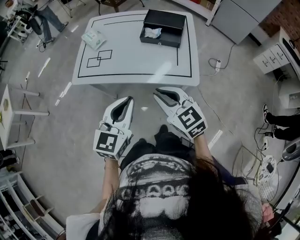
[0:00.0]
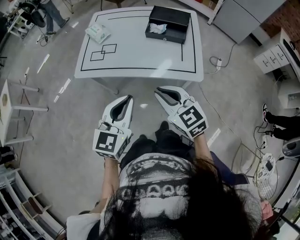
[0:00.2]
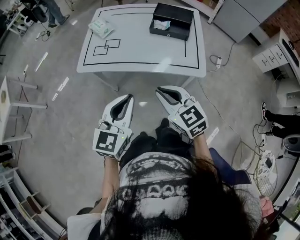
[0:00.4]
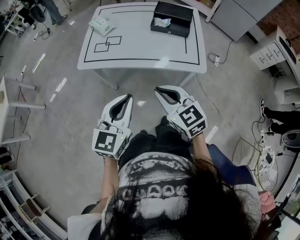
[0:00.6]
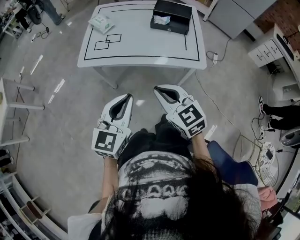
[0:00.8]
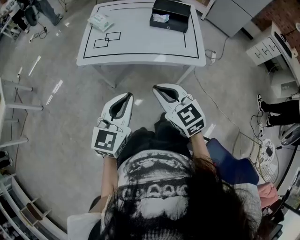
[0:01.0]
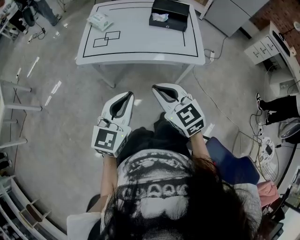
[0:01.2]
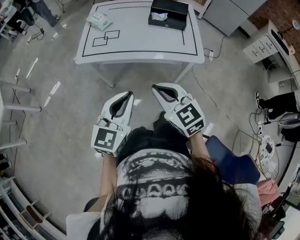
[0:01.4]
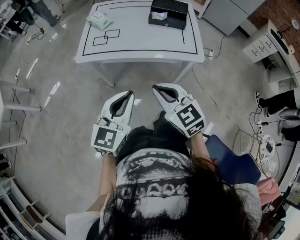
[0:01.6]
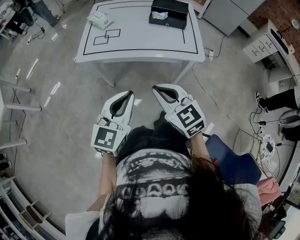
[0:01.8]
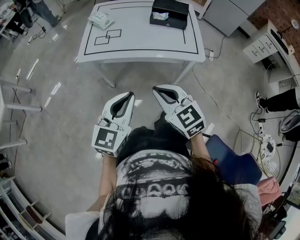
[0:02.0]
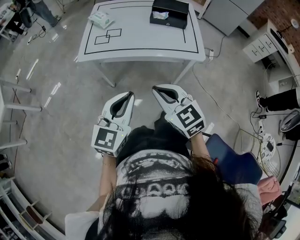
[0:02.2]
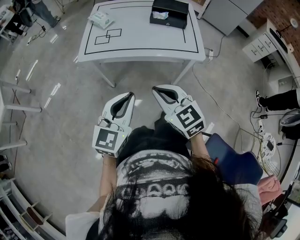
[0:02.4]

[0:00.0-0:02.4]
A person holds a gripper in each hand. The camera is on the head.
0:00.0 to 0:01.2: Both grippers move to the left and backward, some 15 cm.
0:01.2 to 0:02.4: There are only small adjustments of the grippers.

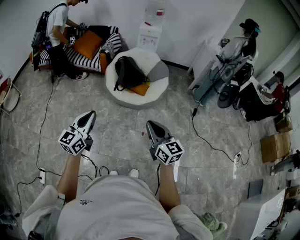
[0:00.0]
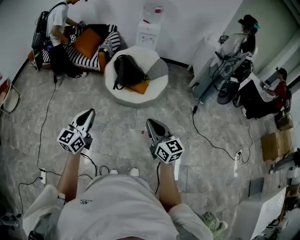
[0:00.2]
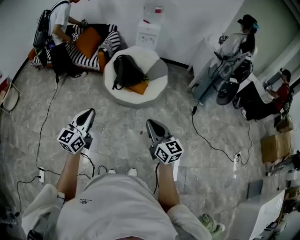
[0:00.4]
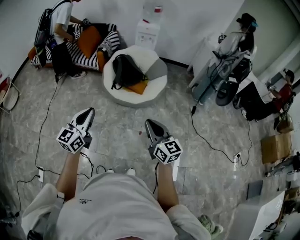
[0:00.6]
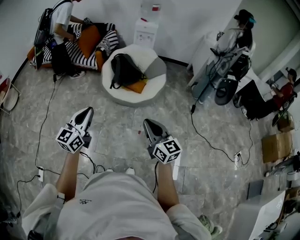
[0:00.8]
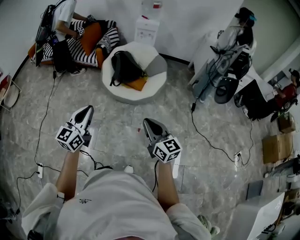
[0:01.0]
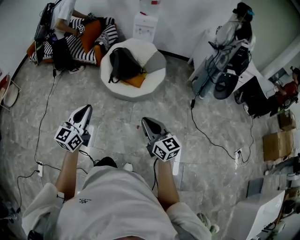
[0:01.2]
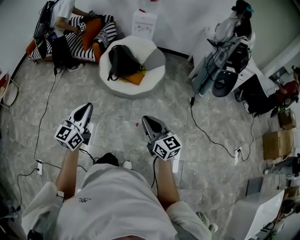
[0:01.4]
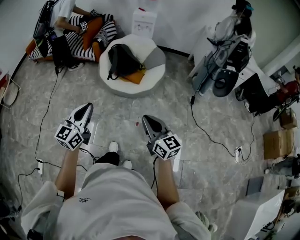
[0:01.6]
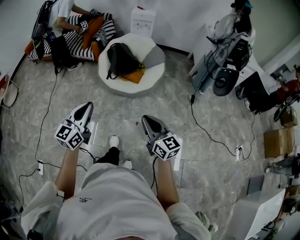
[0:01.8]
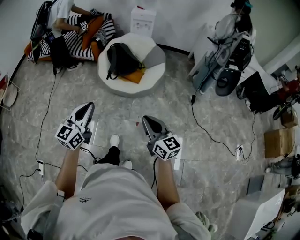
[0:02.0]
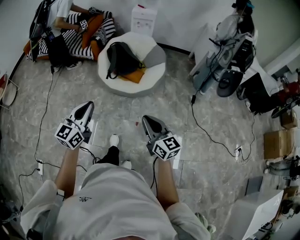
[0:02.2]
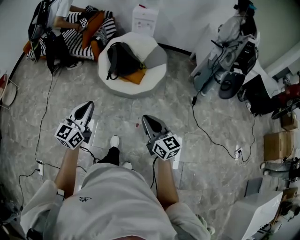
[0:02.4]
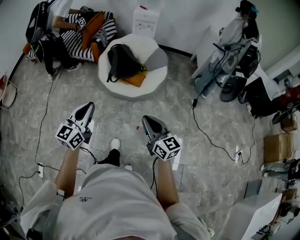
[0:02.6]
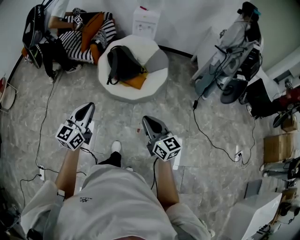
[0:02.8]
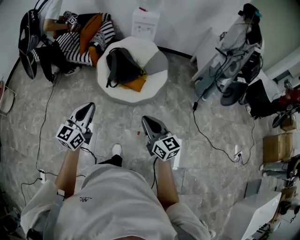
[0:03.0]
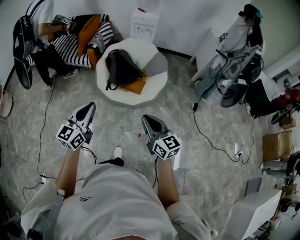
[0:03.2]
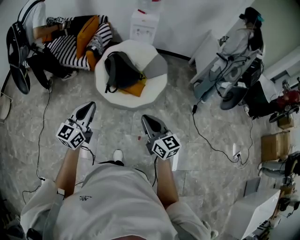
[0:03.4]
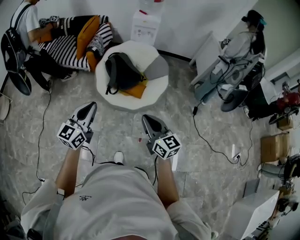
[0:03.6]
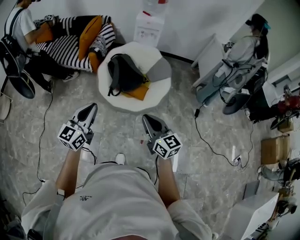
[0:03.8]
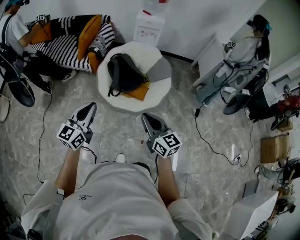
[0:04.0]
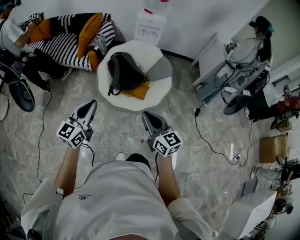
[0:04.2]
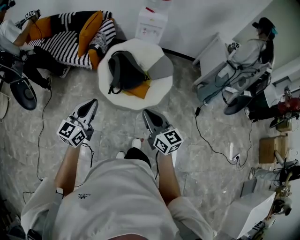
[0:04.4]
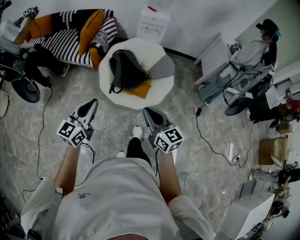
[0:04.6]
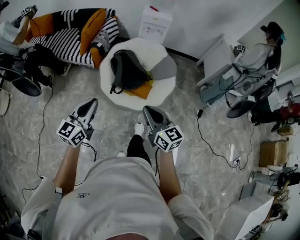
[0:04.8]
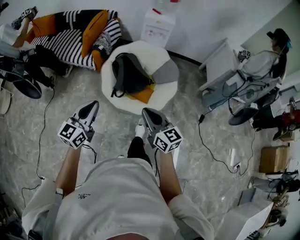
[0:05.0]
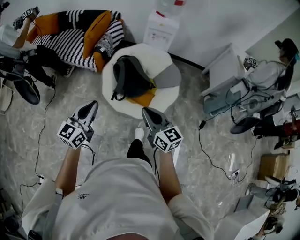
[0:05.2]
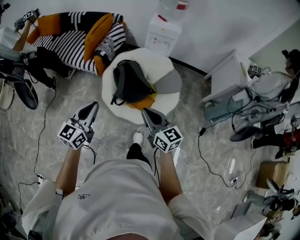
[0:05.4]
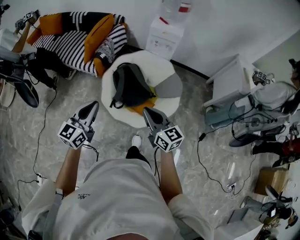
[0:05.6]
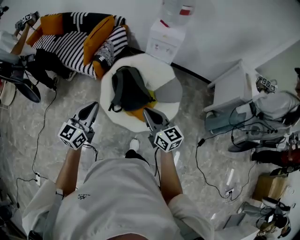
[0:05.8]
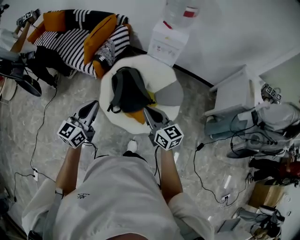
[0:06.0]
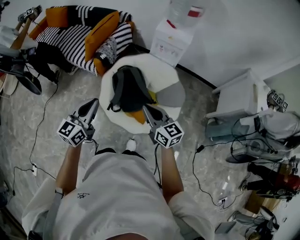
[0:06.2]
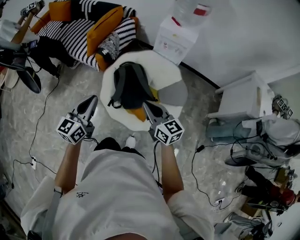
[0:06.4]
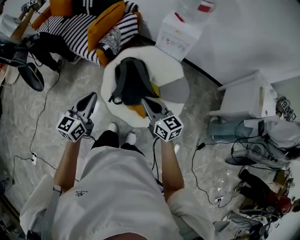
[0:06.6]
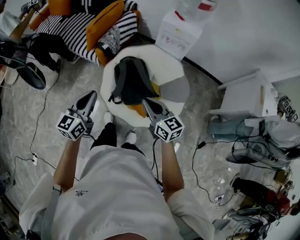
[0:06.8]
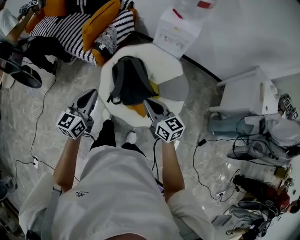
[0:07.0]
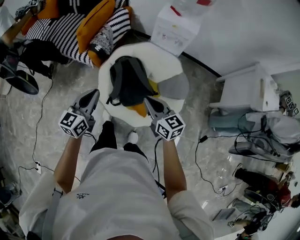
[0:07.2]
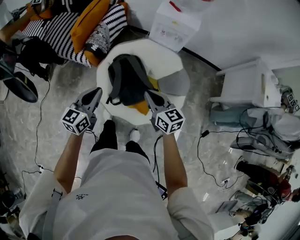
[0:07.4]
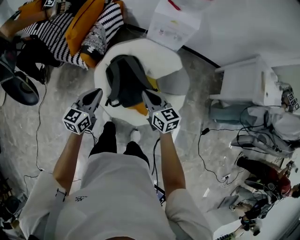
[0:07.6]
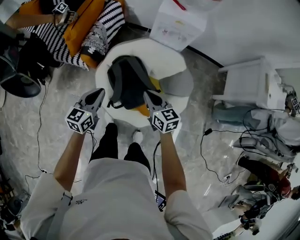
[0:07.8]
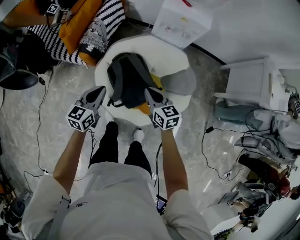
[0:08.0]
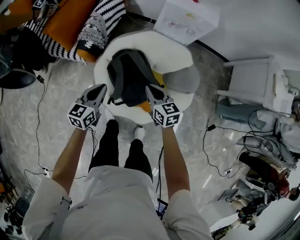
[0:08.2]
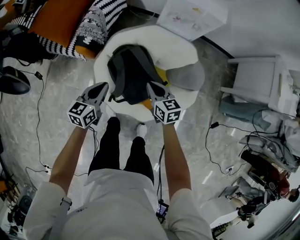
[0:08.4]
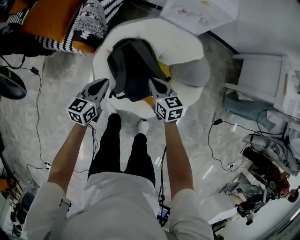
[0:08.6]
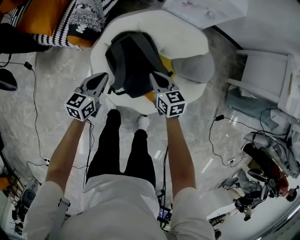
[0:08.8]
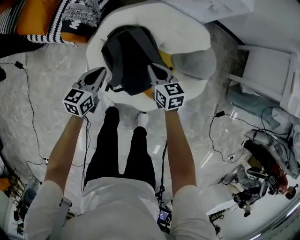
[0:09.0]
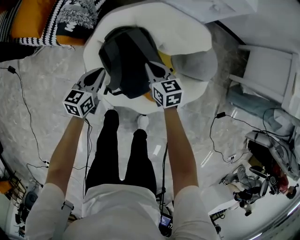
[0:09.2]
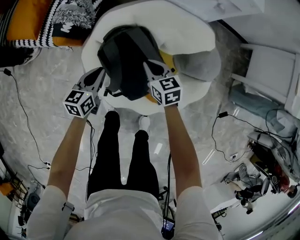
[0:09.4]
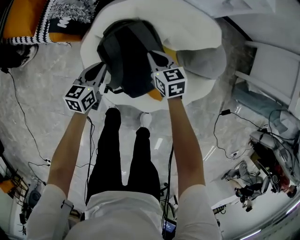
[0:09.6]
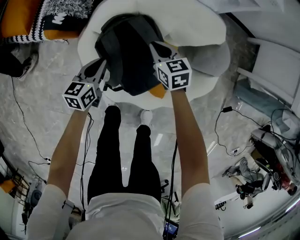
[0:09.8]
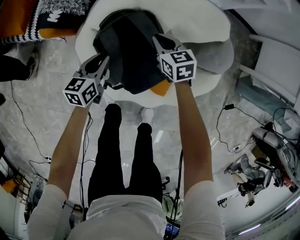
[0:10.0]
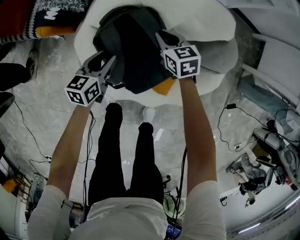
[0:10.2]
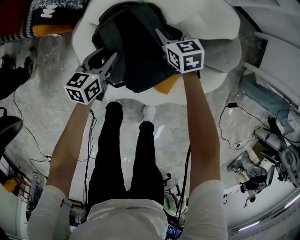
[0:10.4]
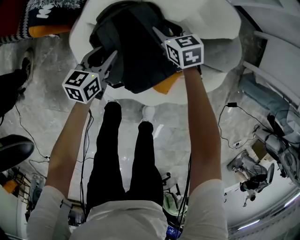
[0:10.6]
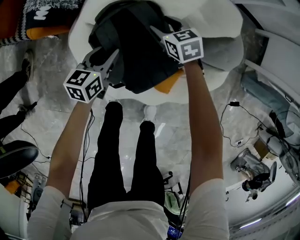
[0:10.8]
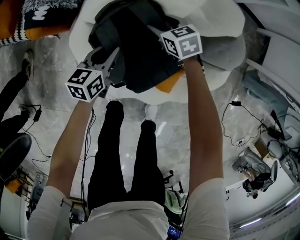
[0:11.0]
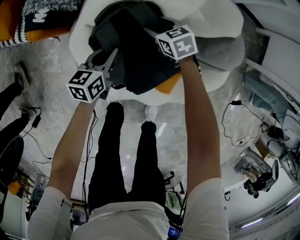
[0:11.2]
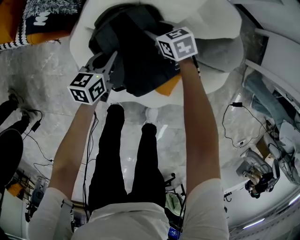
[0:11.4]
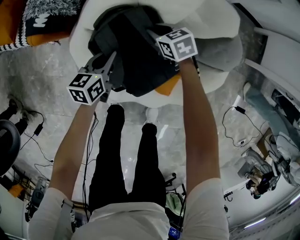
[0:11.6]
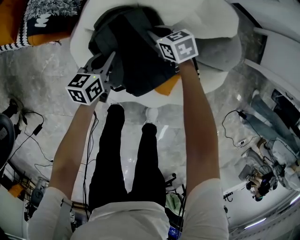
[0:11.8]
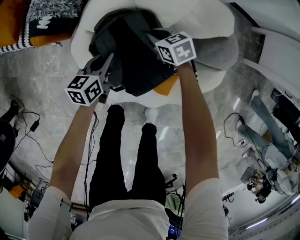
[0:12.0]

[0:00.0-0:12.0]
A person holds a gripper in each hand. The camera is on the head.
0:00.0 to 0:01.6: The two grippers go roughly 15 cm to the right.
0:01.6 to 0:03.0: The two grippers go about 20 cm forward.
0:03.0 to 0:04.4: Both grippers travel together forward and to the left, approximately 20 cm.
0:04.4 to 0:06.0: The left gripper moves forward and to the right, some 30 cm, while the right gripper moves forward, approximately 35 cm.
0:06.0 to 0:07.6: Both grippers move forward and downward, about 25 cm.
0:07.6 to 0:09.0: The grippers both shift downward and forward by approximately 30 cm.
0:09.0 to 0:10.4: The left gripper is displaced downward by about 20 cm, and opens, while the right gripper travels downward and forward by approximately 20 cm.
0:10.4 to 0:12.0: The right gripper opens, then closes again, while the left gripper closes.

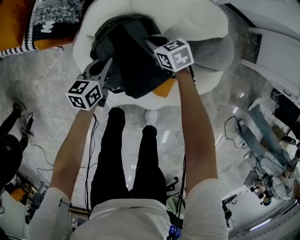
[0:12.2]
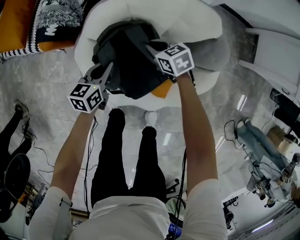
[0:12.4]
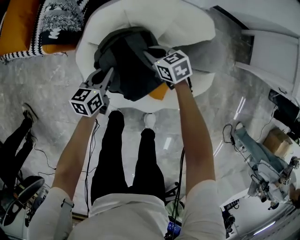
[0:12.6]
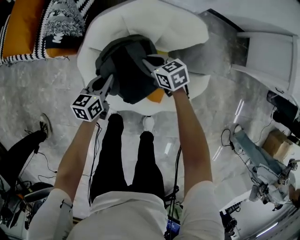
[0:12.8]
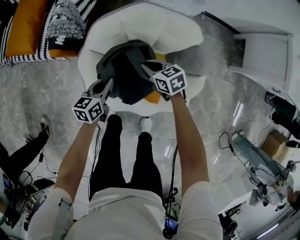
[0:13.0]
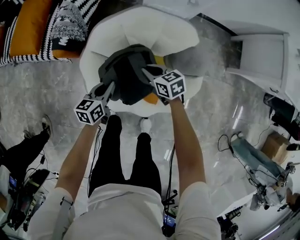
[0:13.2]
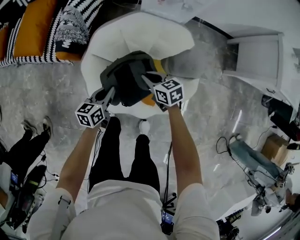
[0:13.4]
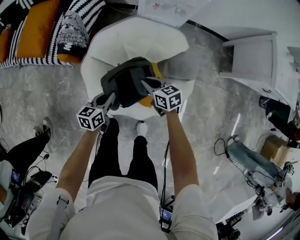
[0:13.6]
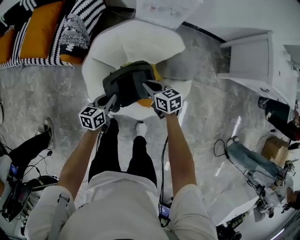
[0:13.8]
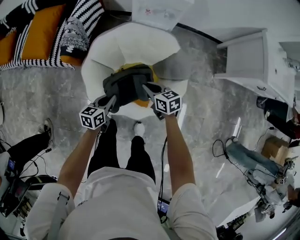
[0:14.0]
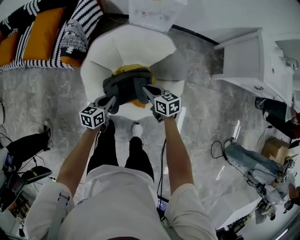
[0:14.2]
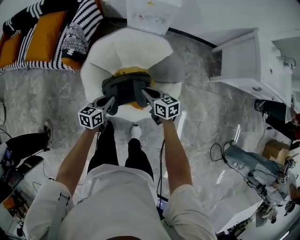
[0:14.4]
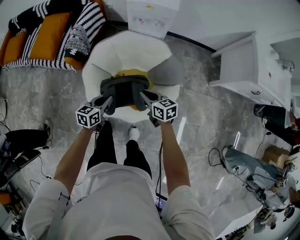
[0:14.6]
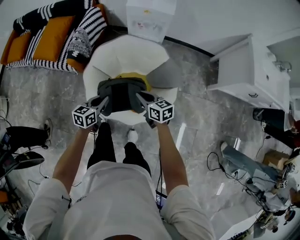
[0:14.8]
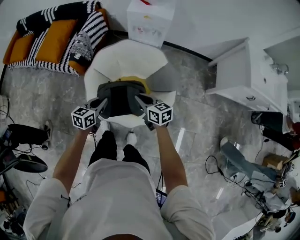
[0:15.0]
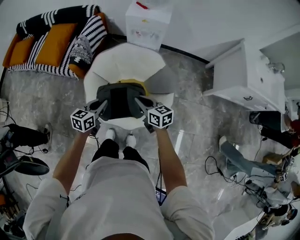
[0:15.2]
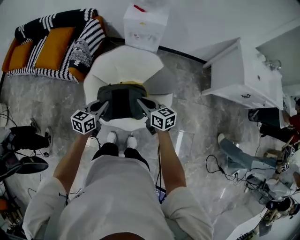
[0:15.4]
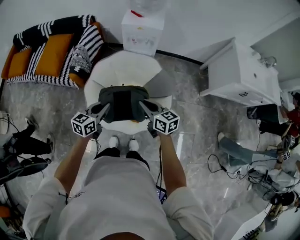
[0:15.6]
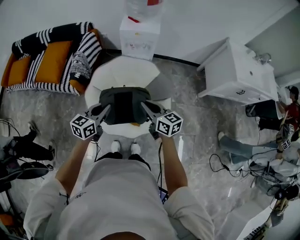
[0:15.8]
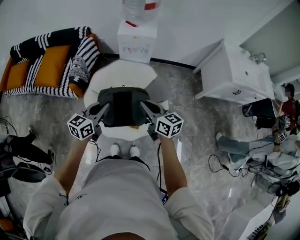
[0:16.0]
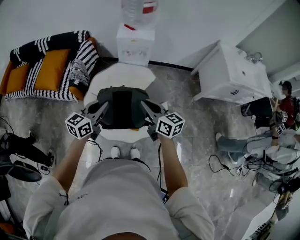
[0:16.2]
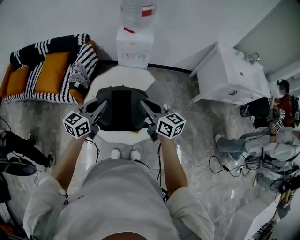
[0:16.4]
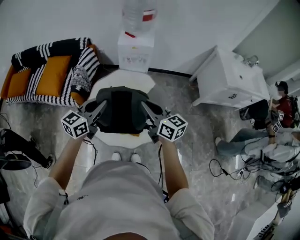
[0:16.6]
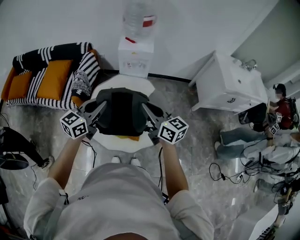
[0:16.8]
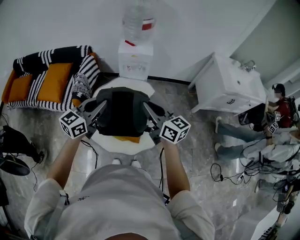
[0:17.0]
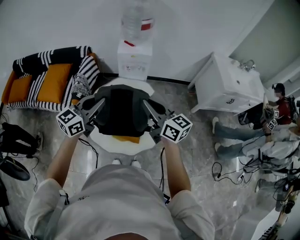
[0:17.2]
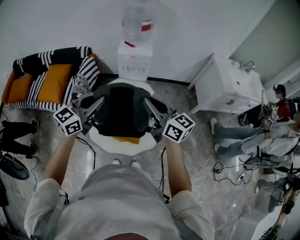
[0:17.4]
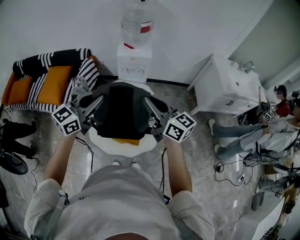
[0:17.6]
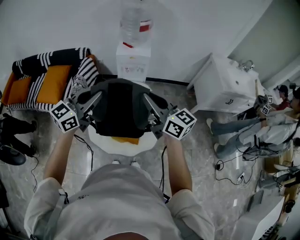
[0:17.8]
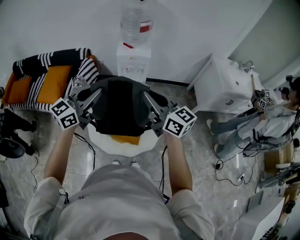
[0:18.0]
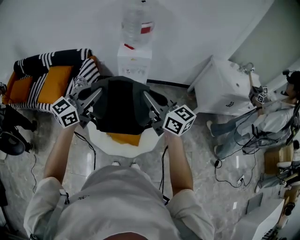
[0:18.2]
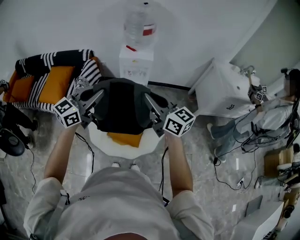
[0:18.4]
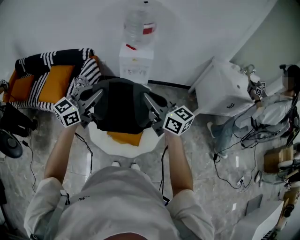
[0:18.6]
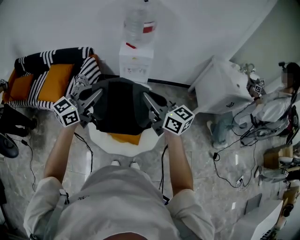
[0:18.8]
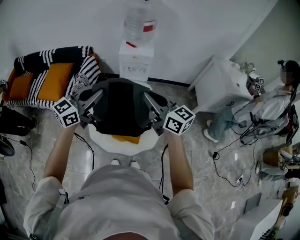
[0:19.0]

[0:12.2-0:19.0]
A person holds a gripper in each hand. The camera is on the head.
0:12.2 to 0:13.6: Both grippers move upward and backward, some 25 cm.
0:13.6 to 0:15.0: The right gripper goes some 20 cm upward, backward and to the right. The left gripper travels upward and backward by roughly 20 cm.
0:15.0 to 0:16.2: Both grippers travel together upward, approximately 20 cm. The left gripper rotates roughly 20 degrees; the right gripper changes its angle by about 20 degrees.
0:16.2 to 0:17.6: The two grippers go some 15 cm upward.

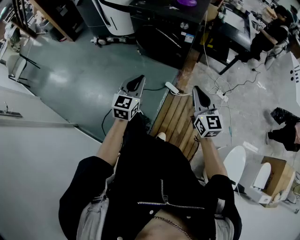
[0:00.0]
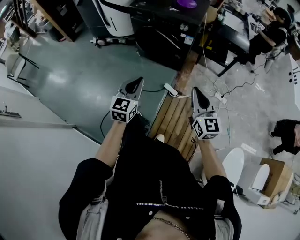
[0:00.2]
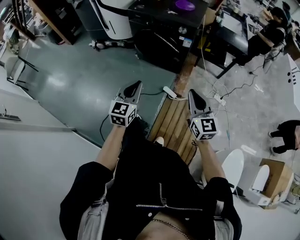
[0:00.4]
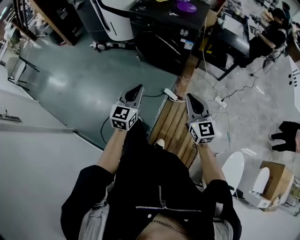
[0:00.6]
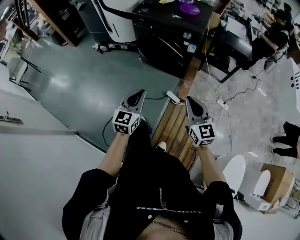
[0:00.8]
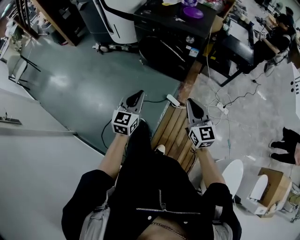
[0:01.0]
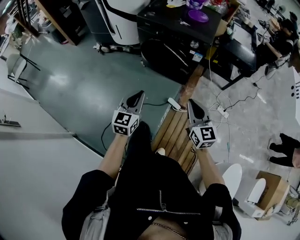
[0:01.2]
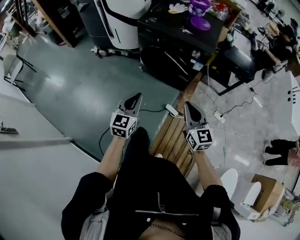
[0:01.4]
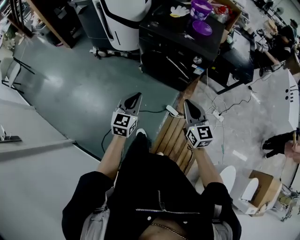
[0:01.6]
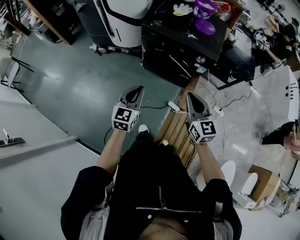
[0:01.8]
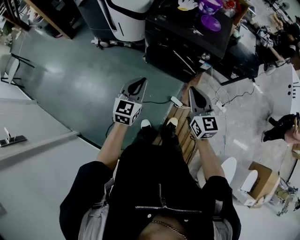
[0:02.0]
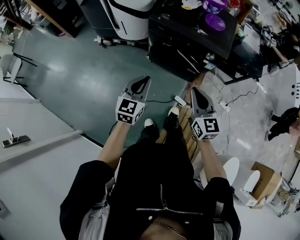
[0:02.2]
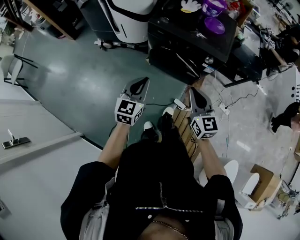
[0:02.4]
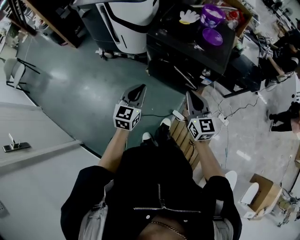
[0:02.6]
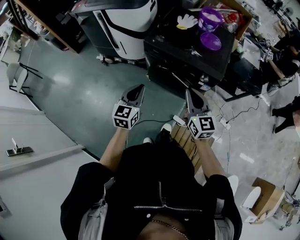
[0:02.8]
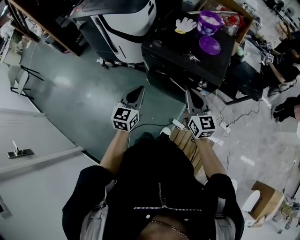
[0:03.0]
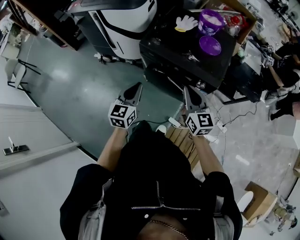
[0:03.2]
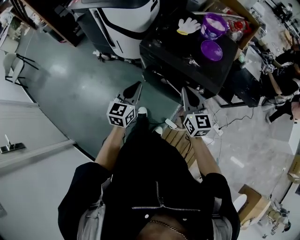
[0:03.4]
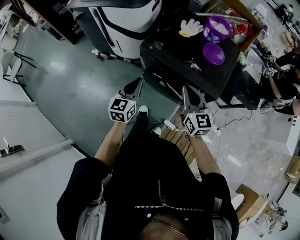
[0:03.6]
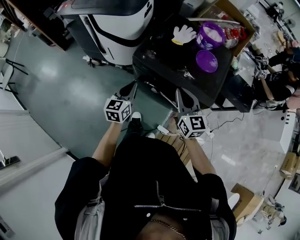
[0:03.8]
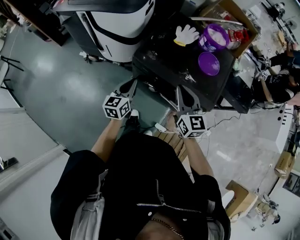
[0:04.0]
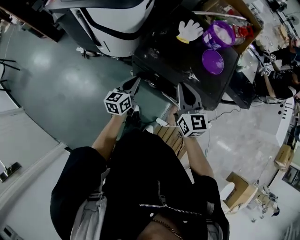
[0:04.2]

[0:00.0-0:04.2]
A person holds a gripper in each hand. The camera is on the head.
0:00.0 to 0:01.4: The two grippers go some 15 cm forward and to the left.
0:01.4 to 0:02.8: The grippers both shift forward and upward by approximately 25 cm.
0:02.8 to 0:04.2: The left gripper moves forward and downward, approximately 30 cm, and changes its angle by roughly 30 degrees. Meanwhile the right gripper goes roughly 25 cm forward.
